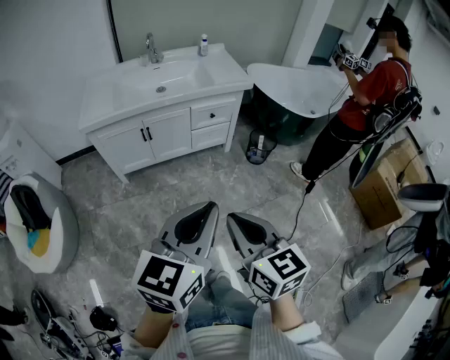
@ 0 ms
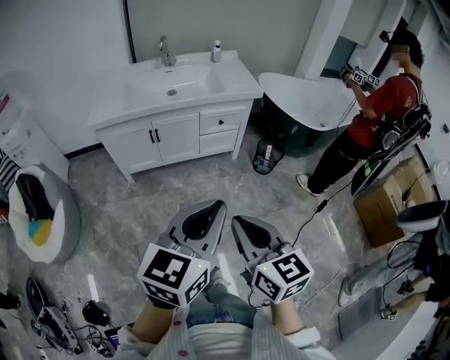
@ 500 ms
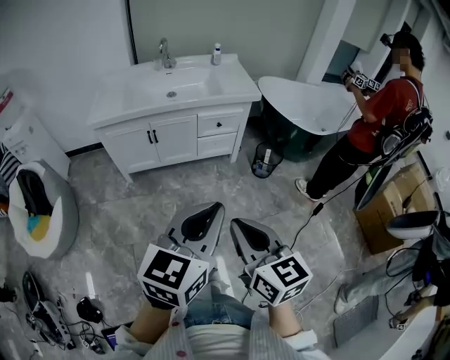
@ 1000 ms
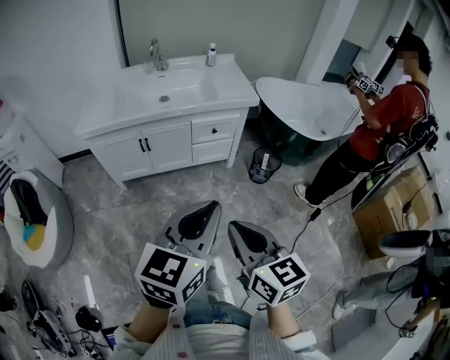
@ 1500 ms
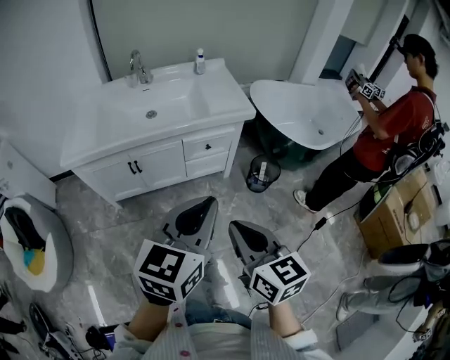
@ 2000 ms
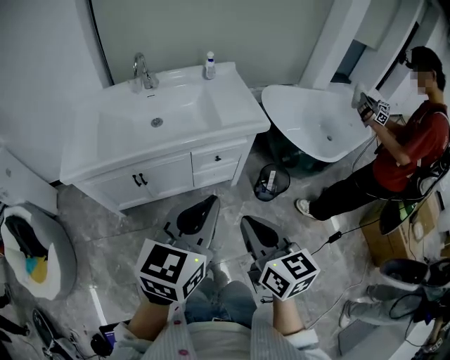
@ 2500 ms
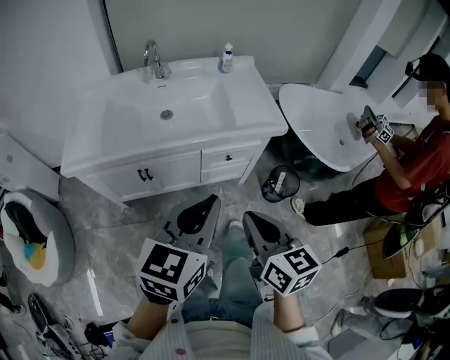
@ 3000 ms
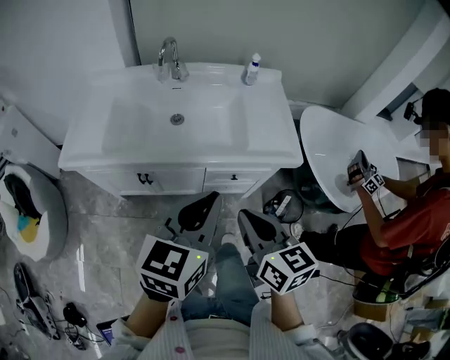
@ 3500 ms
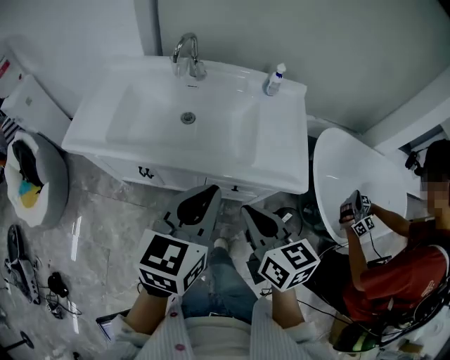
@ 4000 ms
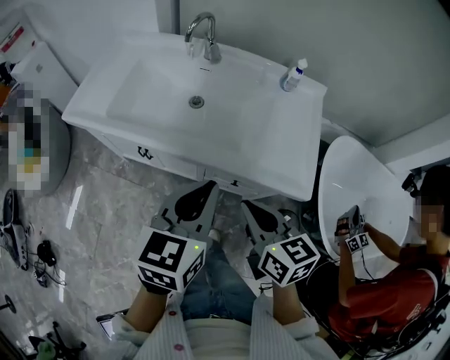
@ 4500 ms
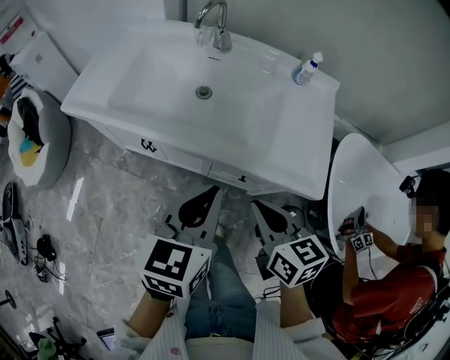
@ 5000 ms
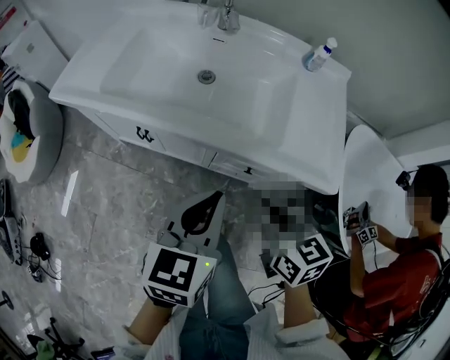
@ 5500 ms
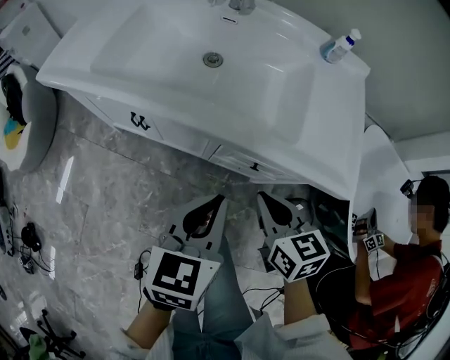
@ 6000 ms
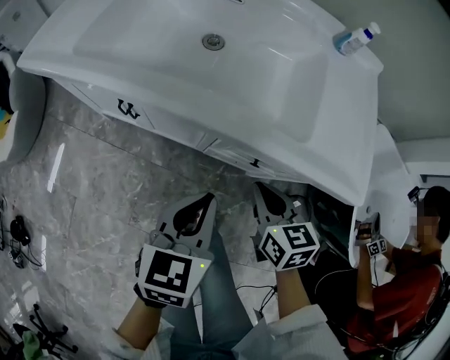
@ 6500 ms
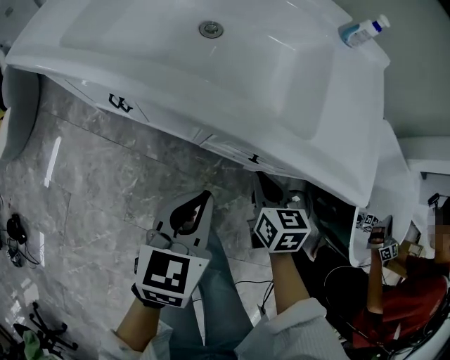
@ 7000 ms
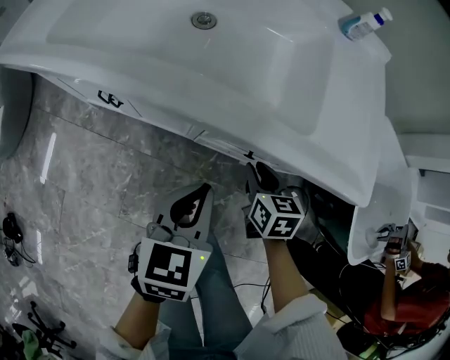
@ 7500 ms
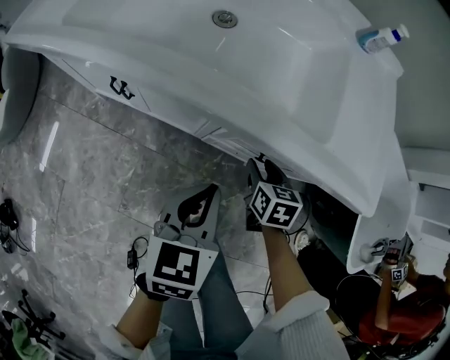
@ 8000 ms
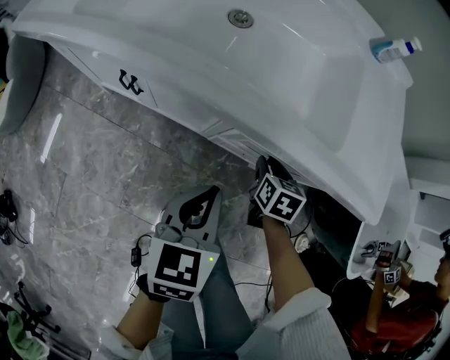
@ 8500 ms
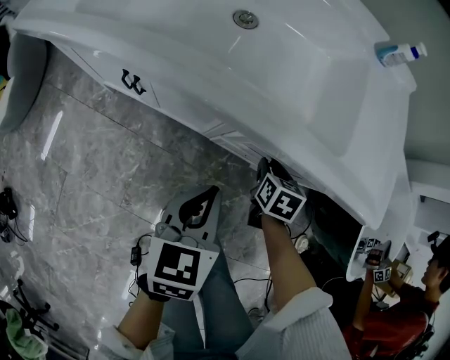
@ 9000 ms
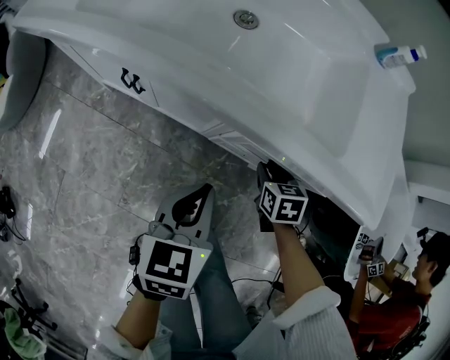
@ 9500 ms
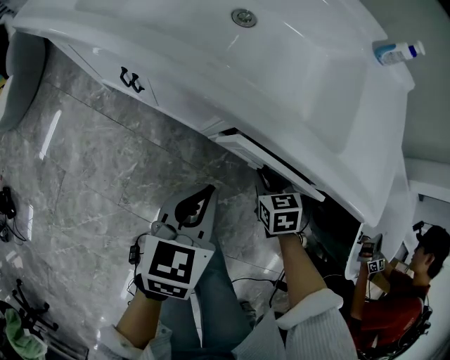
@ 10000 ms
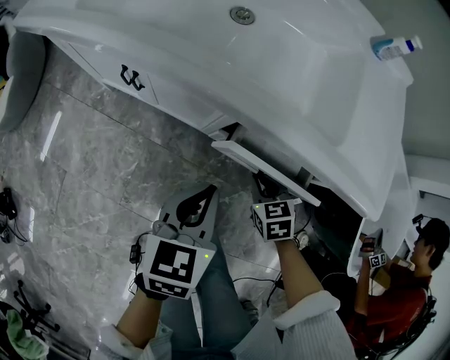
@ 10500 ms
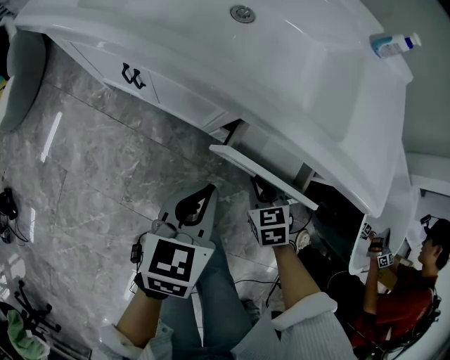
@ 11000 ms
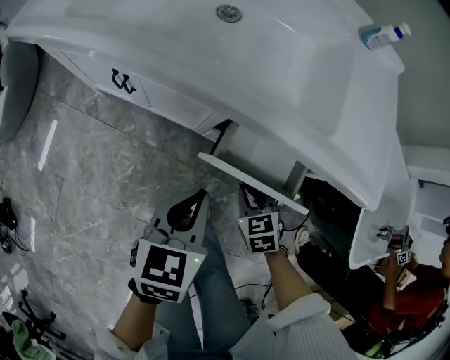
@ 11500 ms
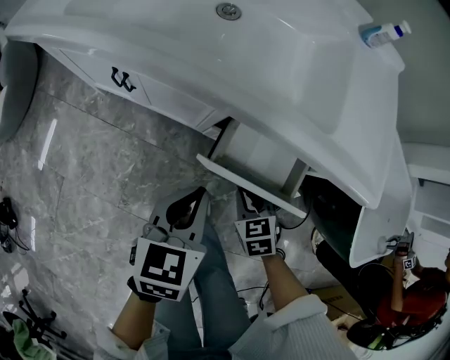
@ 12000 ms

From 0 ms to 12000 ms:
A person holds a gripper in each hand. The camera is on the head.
From 0 ms to 2000 ms: The two grippers go about 25 cm forward.
From 2000 ms to 4000 ms: The right gripper shifts by some 40 cm, and turns by about 20 degrees, while the left gripper ends up approximately 35 cm from where it was, and swivels roughly 30 degrees.
From 4000 ms to 6000 ms: The grippers both shift downward by roughly 20 cm.
From 6000 ms to 8000 ms: The right gripper travels downward by approximately 20 cm, changes its angle by roughly 20 degrees, and opens its fingers. Meanwhile the left gripper travels downward by roughly 15 cm.
From 8000 ms to 10000 ms: The right gripper changes its angle by some 30 degrees, and closes up.
From 10000 ms to 12000 ms: The right gripper shifts approximately 10 cm backward.

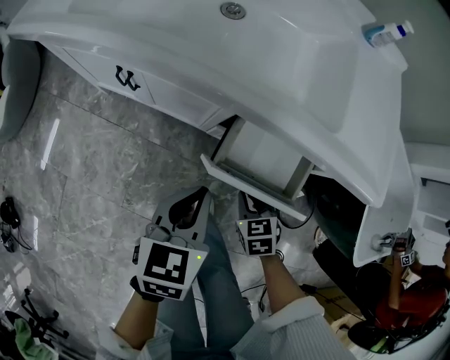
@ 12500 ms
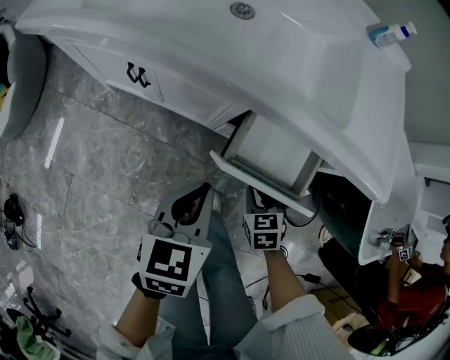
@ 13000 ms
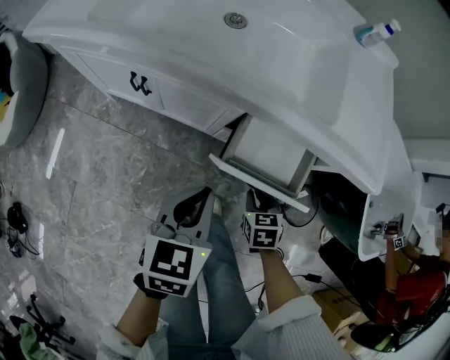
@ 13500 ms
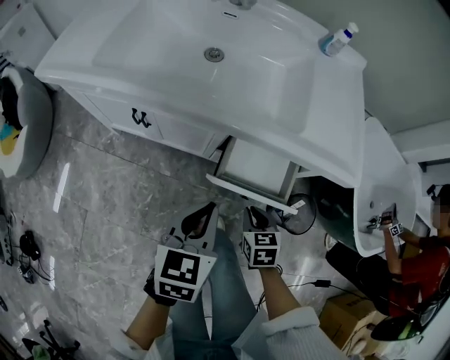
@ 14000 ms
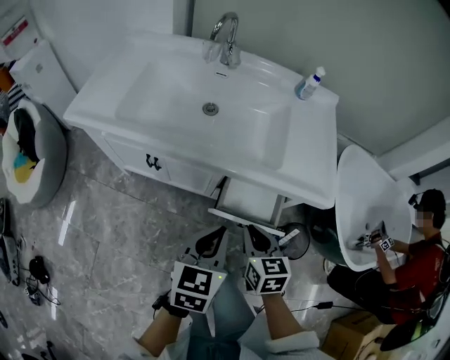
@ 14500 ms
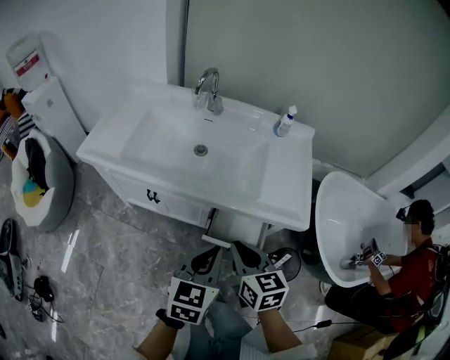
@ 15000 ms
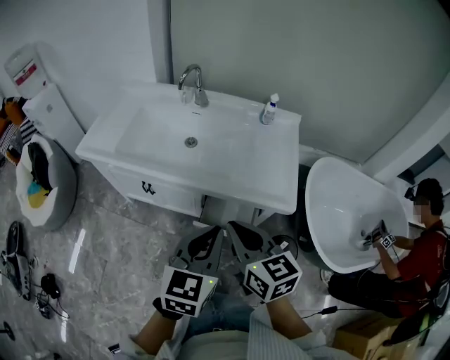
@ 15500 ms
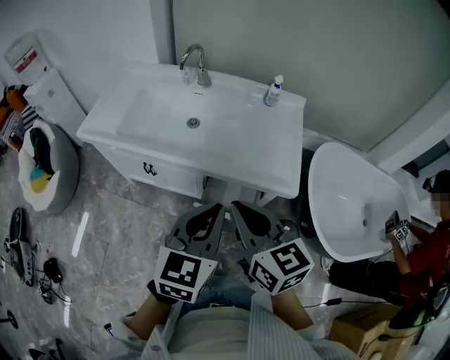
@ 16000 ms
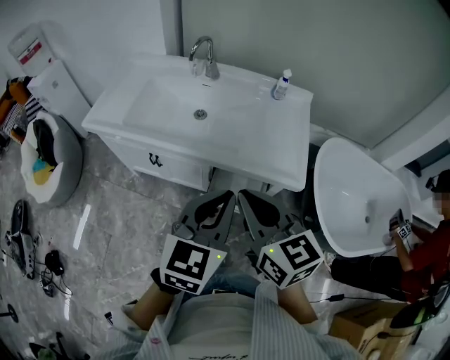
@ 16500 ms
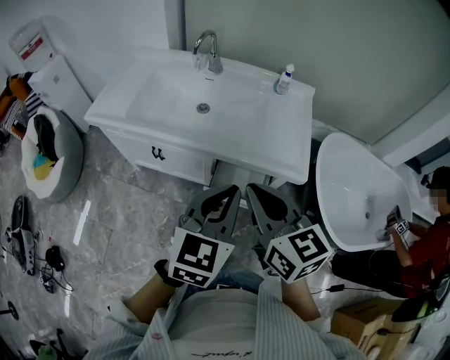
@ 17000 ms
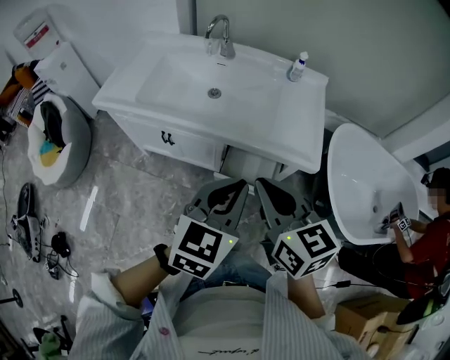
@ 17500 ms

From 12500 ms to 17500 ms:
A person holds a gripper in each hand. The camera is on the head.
From 12500 ms to 15000 ms: The left gripper shifts approximately 25 cm upward; the right gripper shifts some 35 cm upward, and angles its fingers upward, by about 30 degrees.
From 15000 ms to 17500 ms: The right gripper is displaced upward and backward by roughly 15 cm. The left gripper travels upward by about 10 cm.

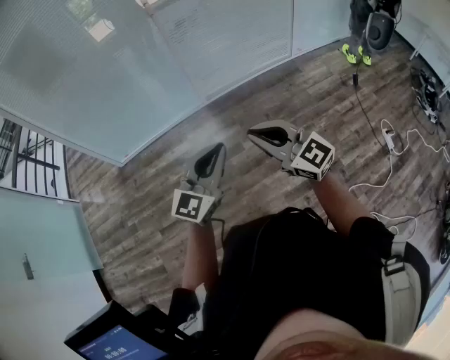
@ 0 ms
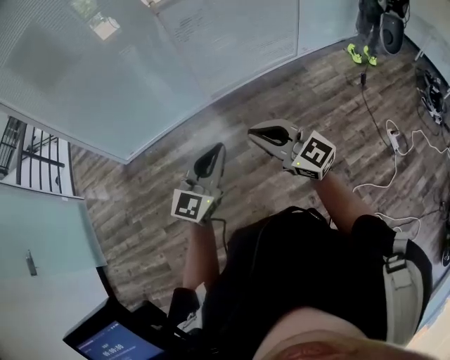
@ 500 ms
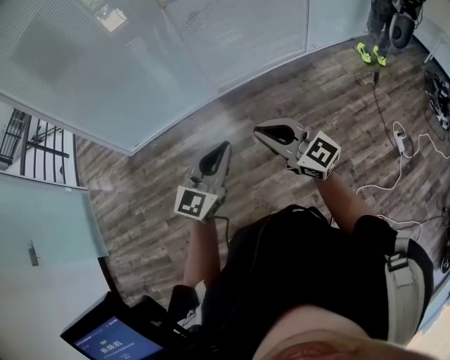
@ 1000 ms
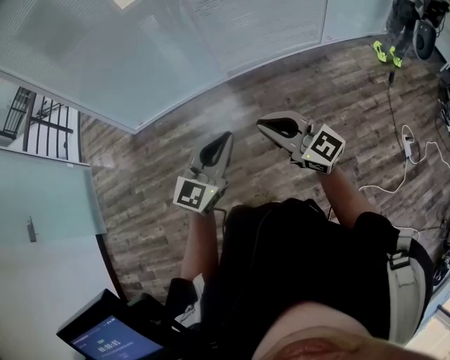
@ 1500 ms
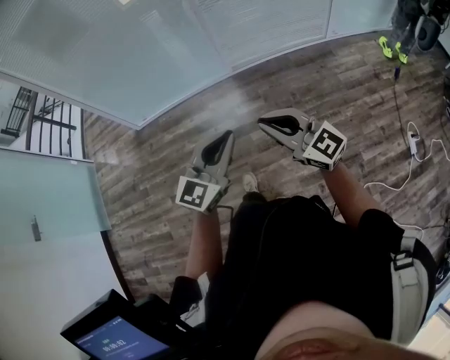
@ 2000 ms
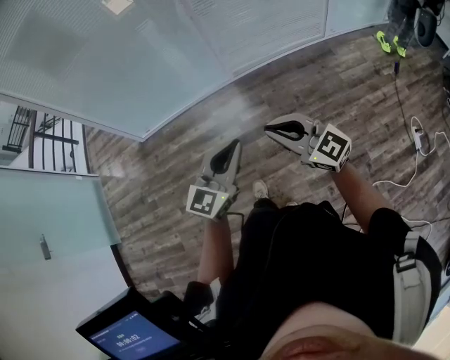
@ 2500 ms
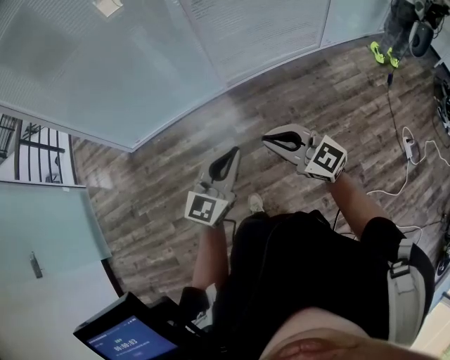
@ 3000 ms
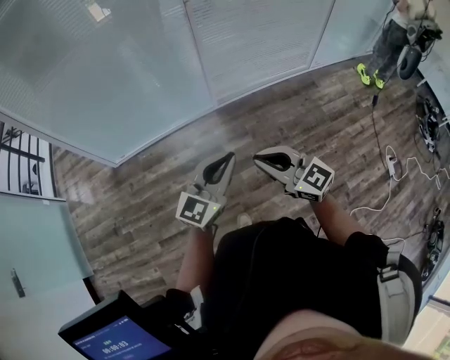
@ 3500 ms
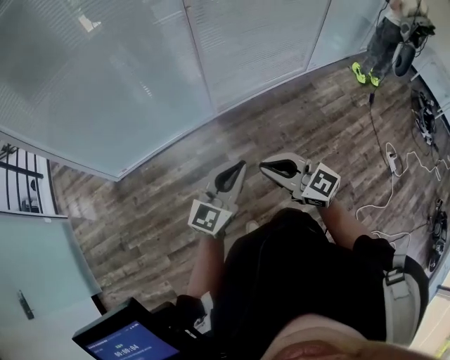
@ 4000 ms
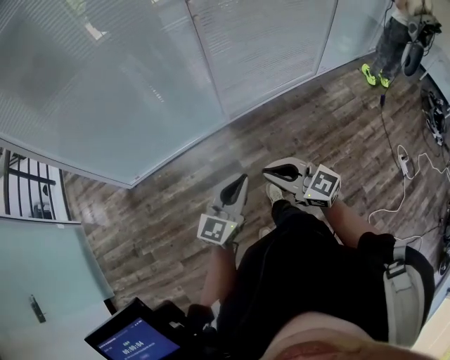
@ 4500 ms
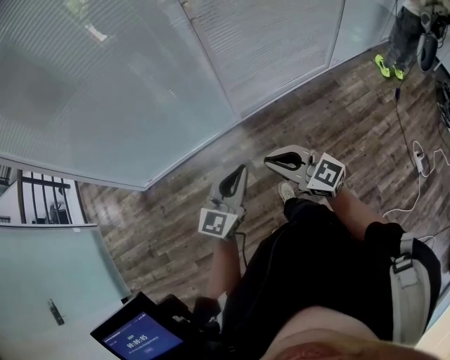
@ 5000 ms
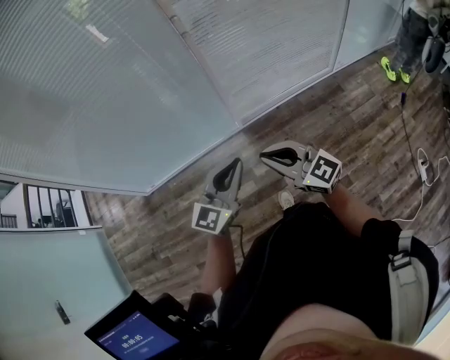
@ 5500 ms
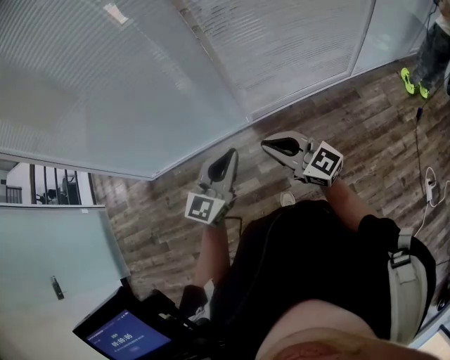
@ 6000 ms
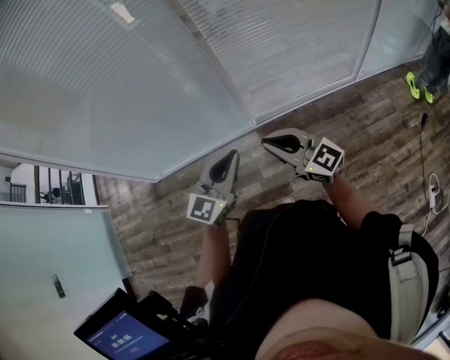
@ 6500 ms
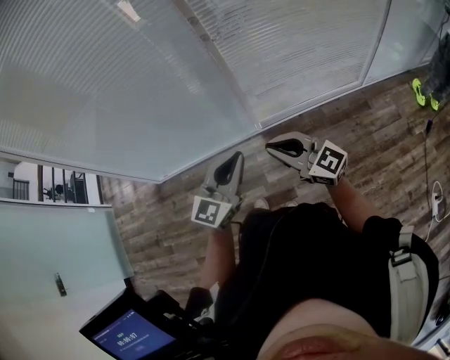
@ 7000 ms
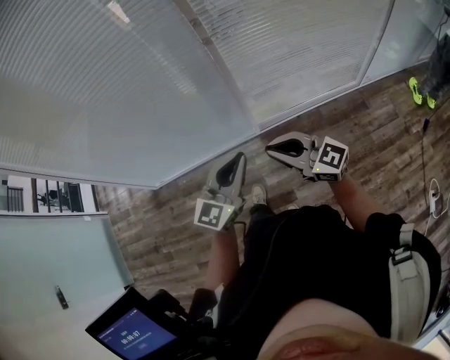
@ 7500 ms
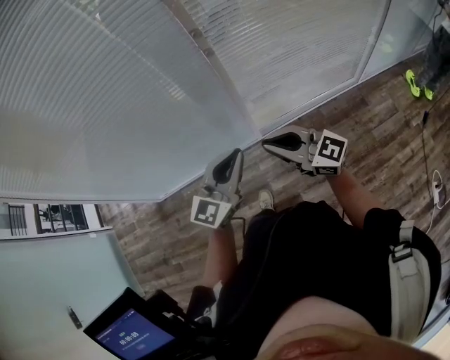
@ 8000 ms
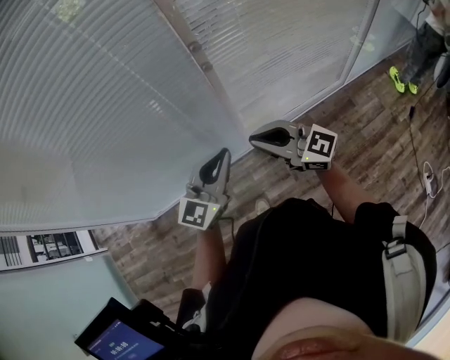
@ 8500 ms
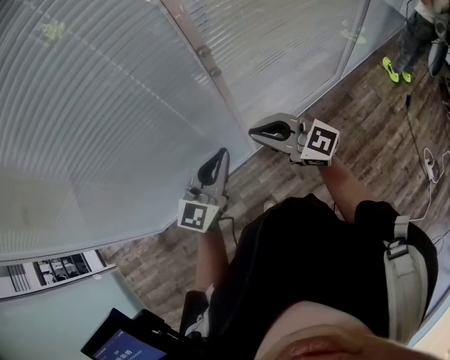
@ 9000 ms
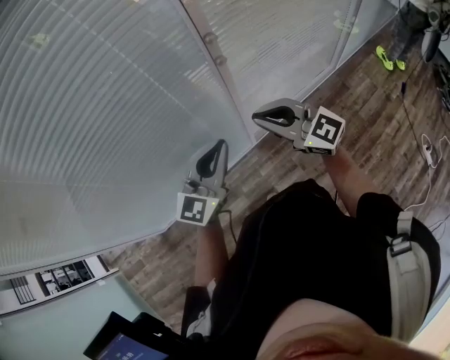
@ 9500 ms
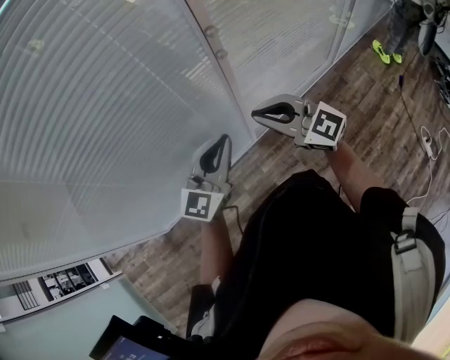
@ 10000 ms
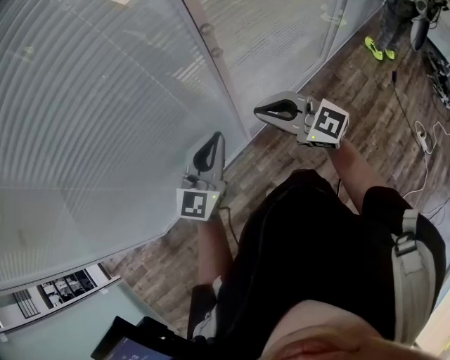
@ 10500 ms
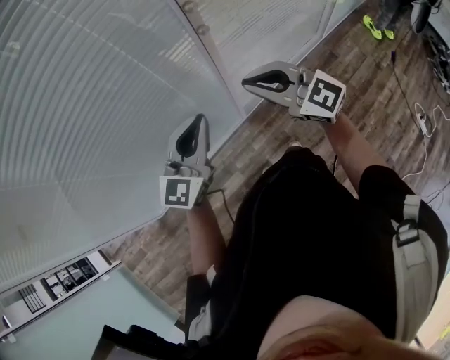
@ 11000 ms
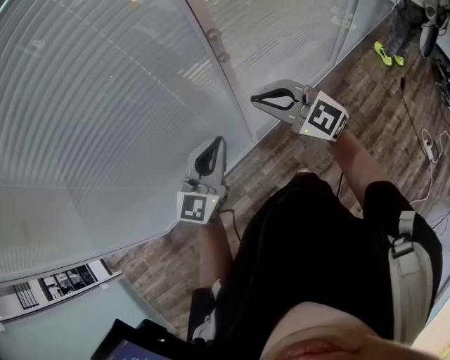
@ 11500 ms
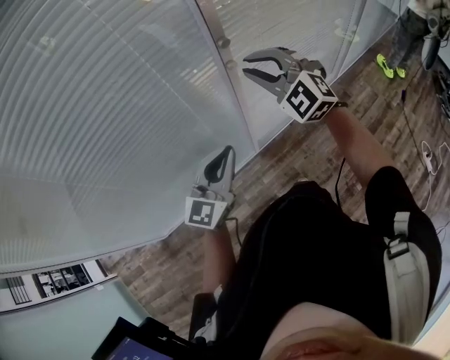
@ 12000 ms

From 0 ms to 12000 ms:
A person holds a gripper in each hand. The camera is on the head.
From 0 ms to 2000 ms: The grippers move only a little.
From 2000 ms to 4000 ms: Both grippers move forward and to the left, approximately 20 cm.
From 4000 ms to 6000 ms: The right gripper heads forward and to the right, covering roughly 25 cm, while the left gripper travels forward by approximately 20 cm.
From 6000 ms to 8000 ms: Both grippers travel together forward, roughly 15 cm.
From 8000 ms to 10000 ms: The two grippers go approximately 15 cm forward and to the left. The right gripper turns by roughly 20 degrees.
From 10000 ms to 12000 ms: The right gripper moves forward and upward, roughly 15 cm, and twists about 40 degrees counterclockwise, seen from behind.
